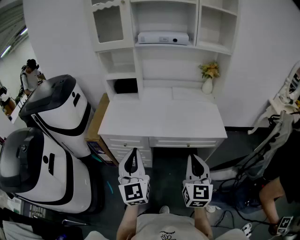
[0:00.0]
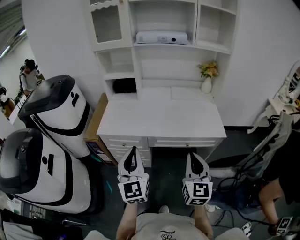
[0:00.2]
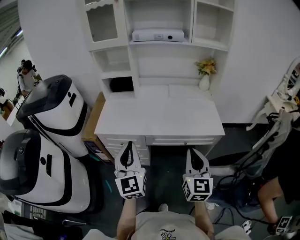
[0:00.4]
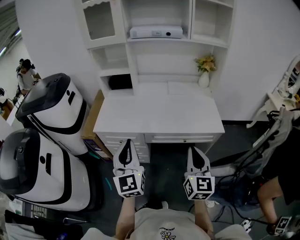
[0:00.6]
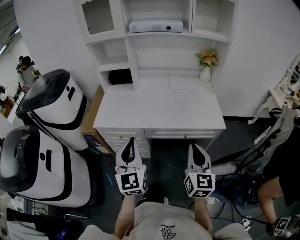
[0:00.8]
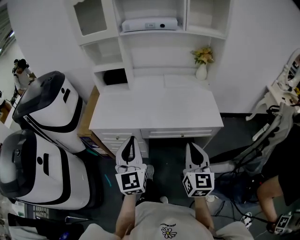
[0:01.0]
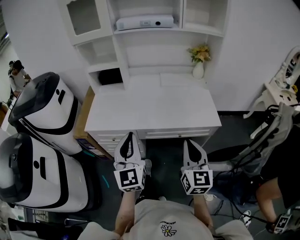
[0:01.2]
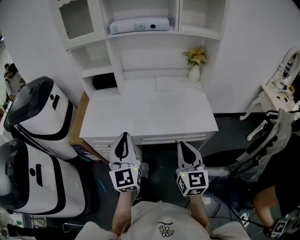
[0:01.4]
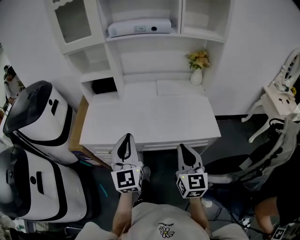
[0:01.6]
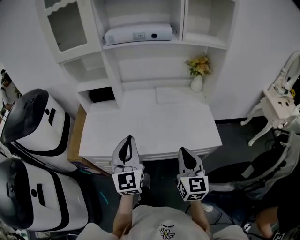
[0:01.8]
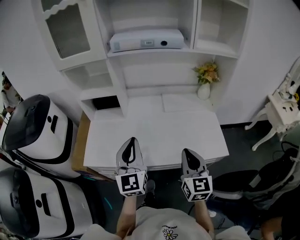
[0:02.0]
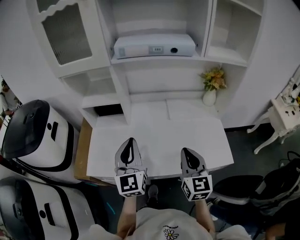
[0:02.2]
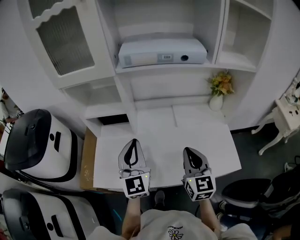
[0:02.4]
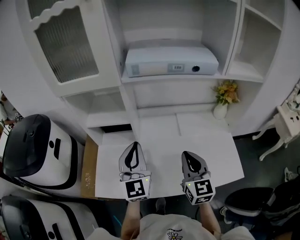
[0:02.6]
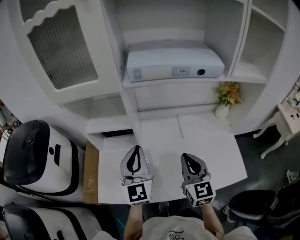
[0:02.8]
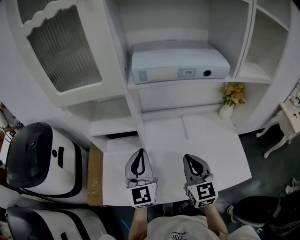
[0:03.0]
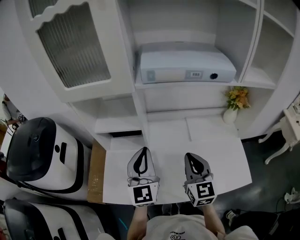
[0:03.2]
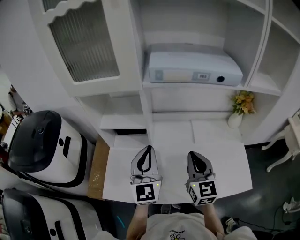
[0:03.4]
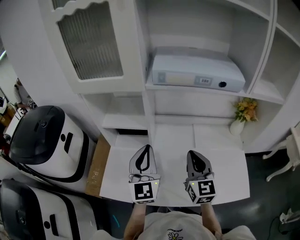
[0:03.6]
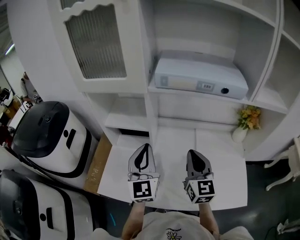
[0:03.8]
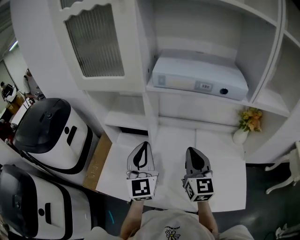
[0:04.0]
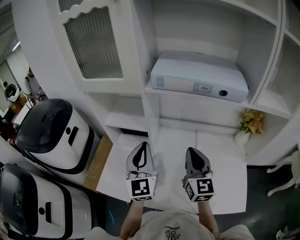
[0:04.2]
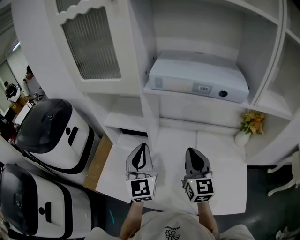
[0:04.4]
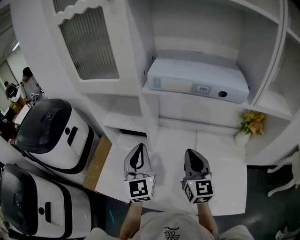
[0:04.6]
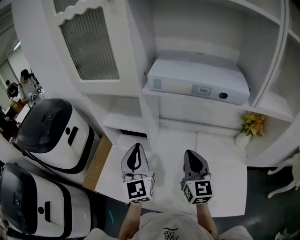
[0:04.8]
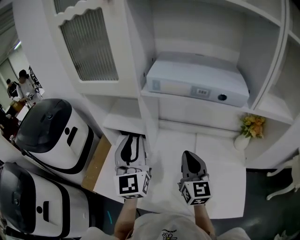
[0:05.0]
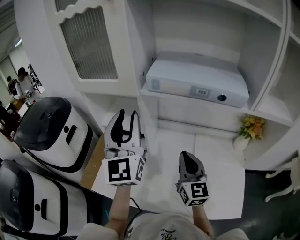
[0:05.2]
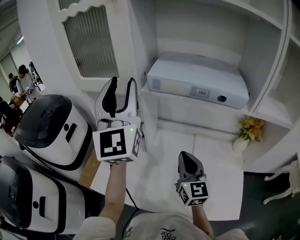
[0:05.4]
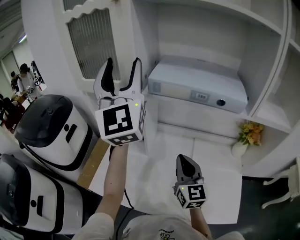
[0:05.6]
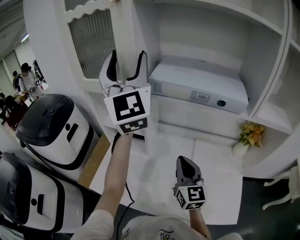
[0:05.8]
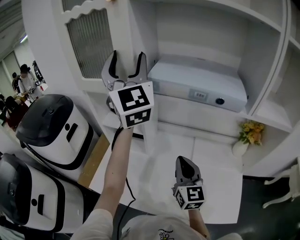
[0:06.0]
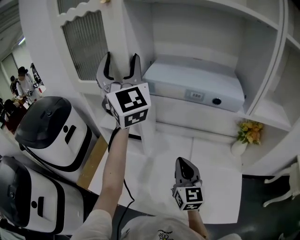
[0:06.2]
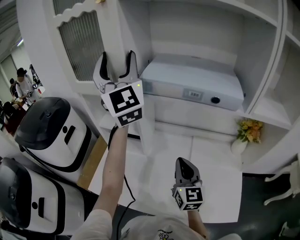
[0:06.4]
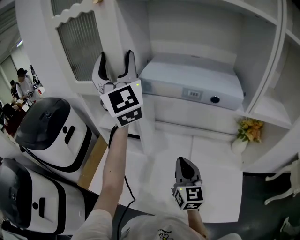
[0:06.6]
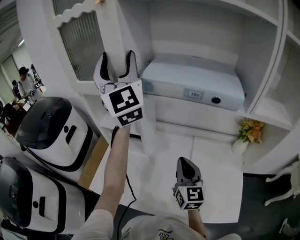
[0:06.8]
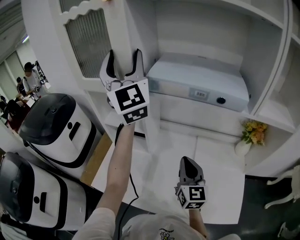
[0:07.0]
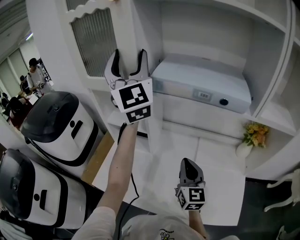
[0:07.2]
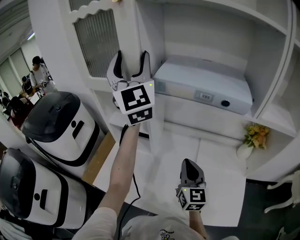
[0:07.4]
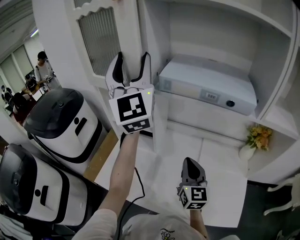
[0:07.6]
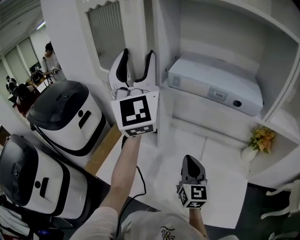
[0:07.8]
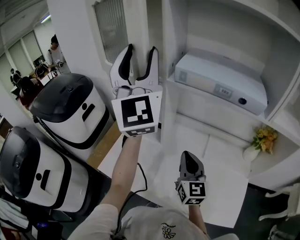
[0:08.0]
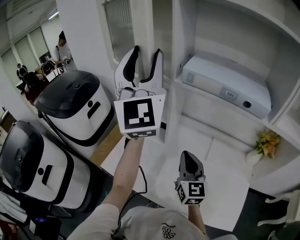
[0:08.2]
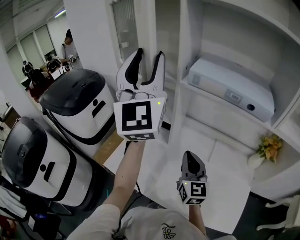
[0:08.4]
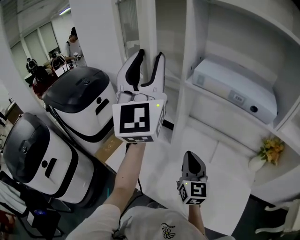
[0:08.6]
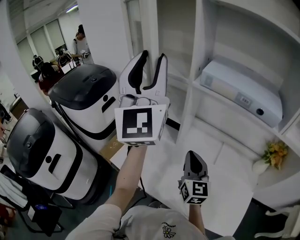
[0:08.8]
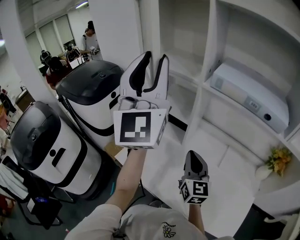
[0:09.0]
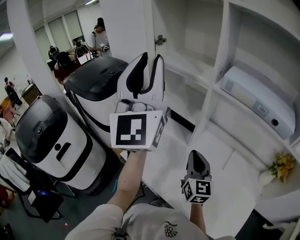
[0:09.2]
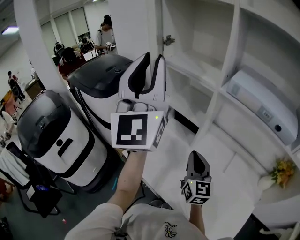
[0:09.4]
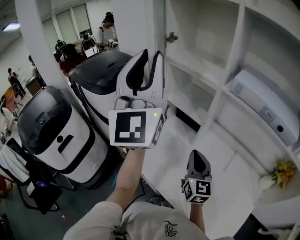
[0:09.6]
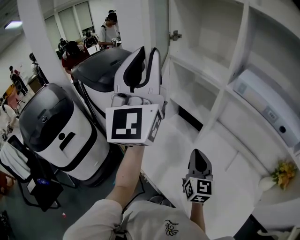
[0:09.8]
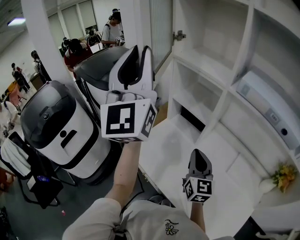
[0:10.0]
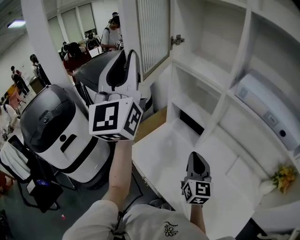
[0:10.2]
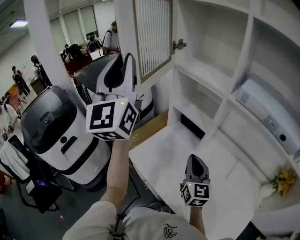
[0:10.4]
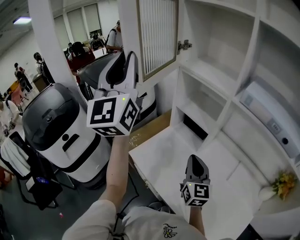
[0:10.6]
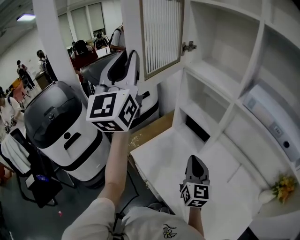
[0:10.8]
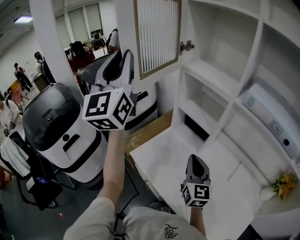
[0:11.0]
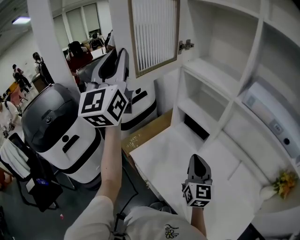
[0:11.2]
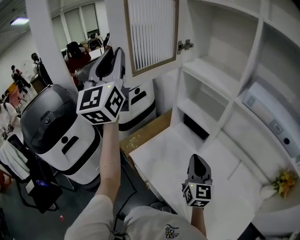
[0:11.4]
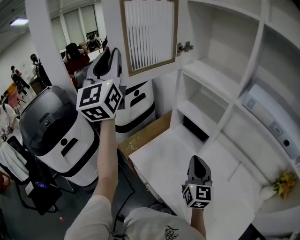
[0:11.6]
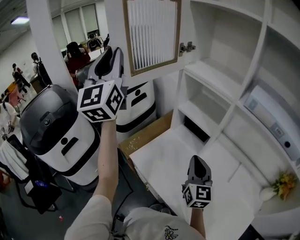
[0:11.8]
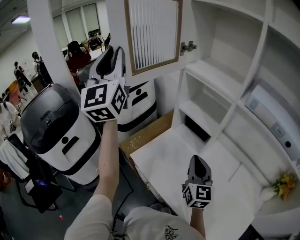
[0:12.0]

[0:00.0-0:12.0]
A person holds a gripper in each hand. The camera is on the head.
0:00.0 to 0:01.6: Both grippers move forward, approximately 15 cm.
0:01.6 to 0:03.0: The right gripper travels forward and to the left by some 35 cm; the left gripper shifts some 30 cm forward.
0:03.0 to 0:04.4: The right gripper moves forward, some 5 cm.
0:04.4 to 0:06.0: The left gripper is displaced upward and forward by about 30 cm, turns by about 30 degrees, and opens its fingers.
0:06.0 to 0:07.6: The grippers stay close to where they were, moving slightly.
0:07.6 to 0:09.0: The left gripper is displaced backward and to the left by approximately 15 cm, and closes. The right gripper goes roughly 10 cm to the left.
0:09.0 to 0:10.4: The right gripper is displaced to the left by some 5 cm, while the left gripper travels to the left by roughly 15 cm.
0:10.4 to 0:12.0: The left gripper goes approximately 10 cm to the left and forward.

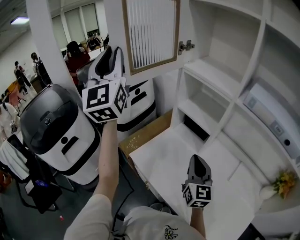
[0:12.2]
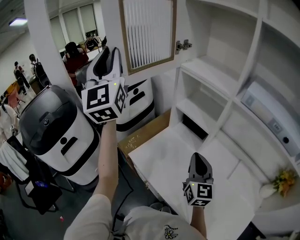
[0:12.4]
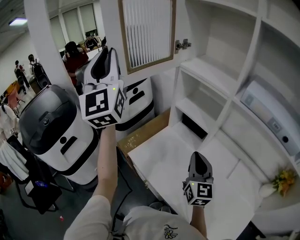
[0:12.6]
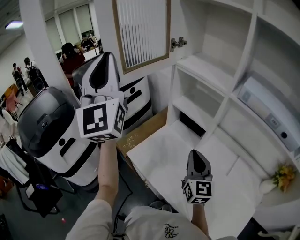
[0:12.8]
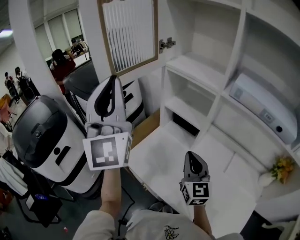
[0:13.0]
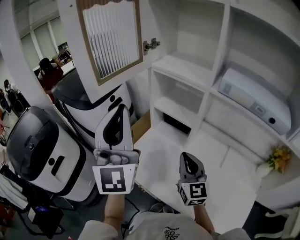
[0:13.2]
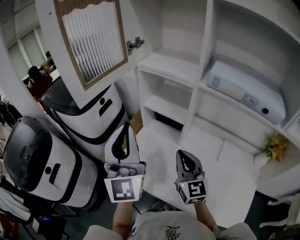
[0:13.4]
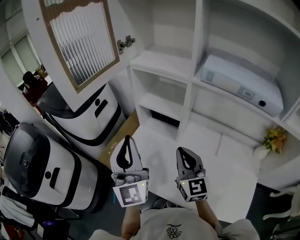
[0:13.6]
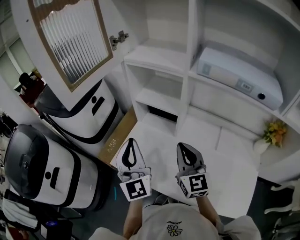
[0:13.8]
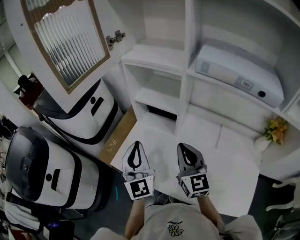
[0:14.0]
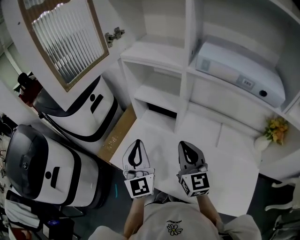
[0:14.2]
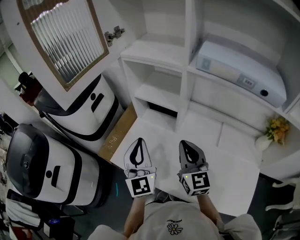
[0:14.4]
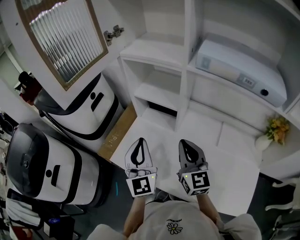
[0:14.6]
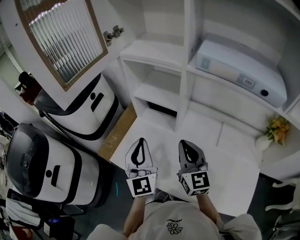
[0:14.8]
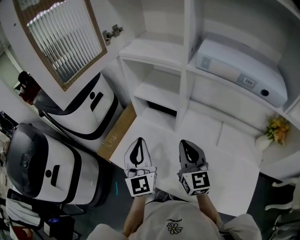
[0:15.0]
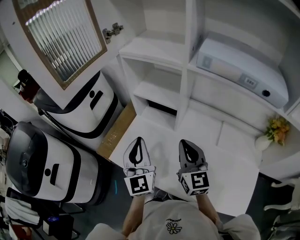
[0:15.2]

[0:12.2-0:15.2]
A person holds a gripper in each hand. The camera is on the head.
0:12.2 to 0:13.8: The left gripper is displaced downward, to the right and backward by roughly 35 cm, and rotates roughly 20 degrees.
0:13.8 to 0:15.2: The left gripper heads downward, covering about 5 cm.

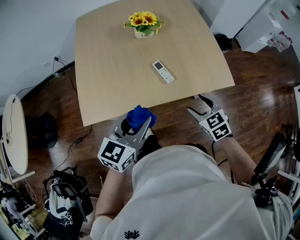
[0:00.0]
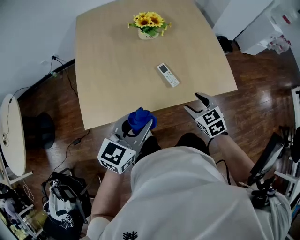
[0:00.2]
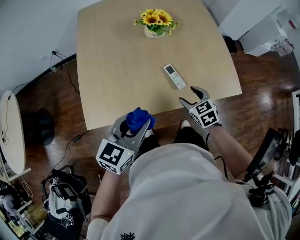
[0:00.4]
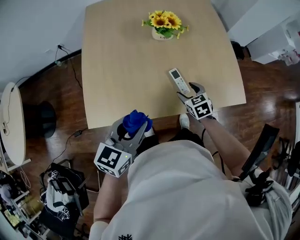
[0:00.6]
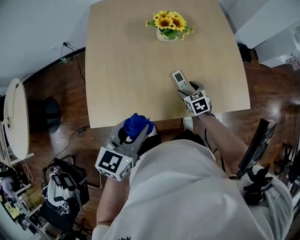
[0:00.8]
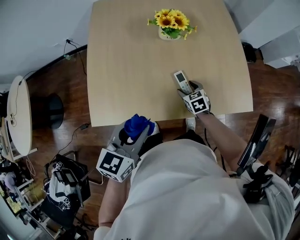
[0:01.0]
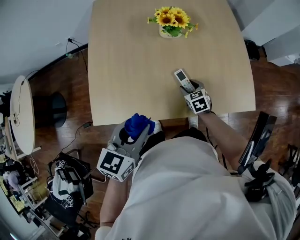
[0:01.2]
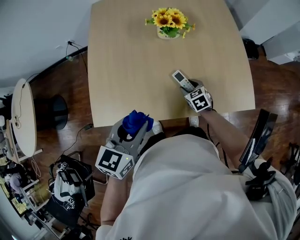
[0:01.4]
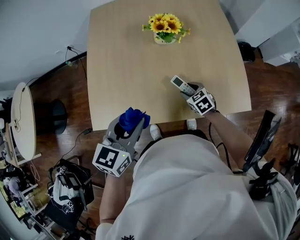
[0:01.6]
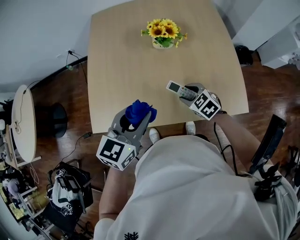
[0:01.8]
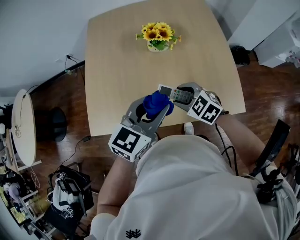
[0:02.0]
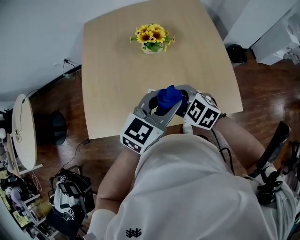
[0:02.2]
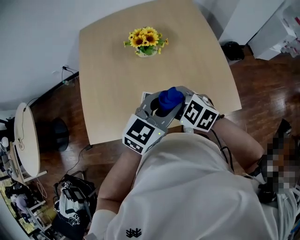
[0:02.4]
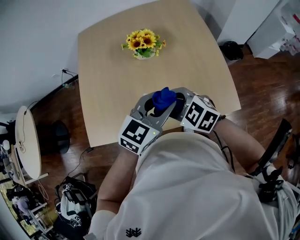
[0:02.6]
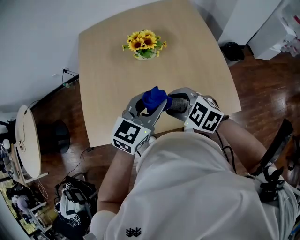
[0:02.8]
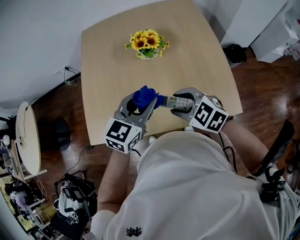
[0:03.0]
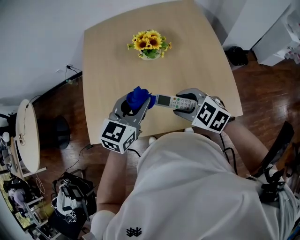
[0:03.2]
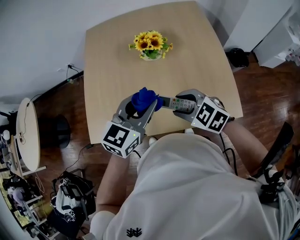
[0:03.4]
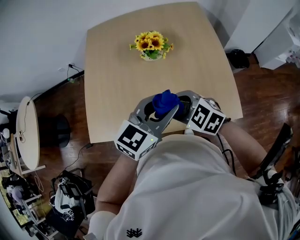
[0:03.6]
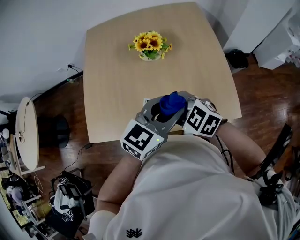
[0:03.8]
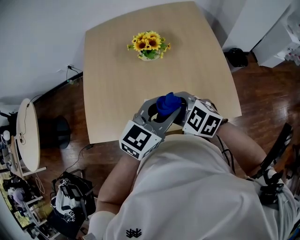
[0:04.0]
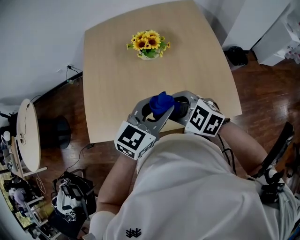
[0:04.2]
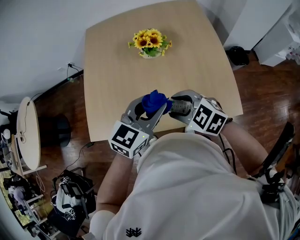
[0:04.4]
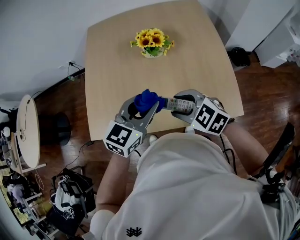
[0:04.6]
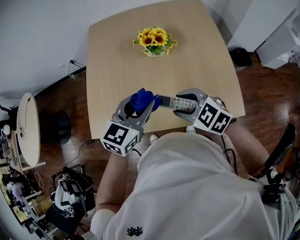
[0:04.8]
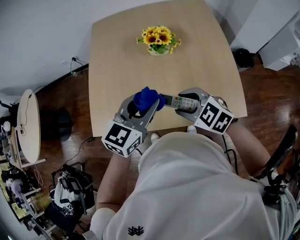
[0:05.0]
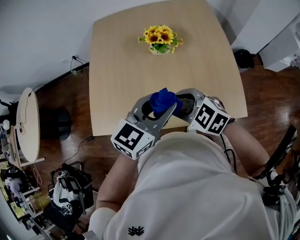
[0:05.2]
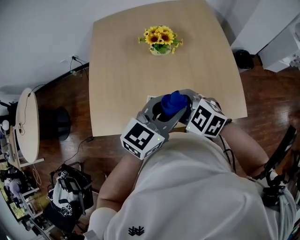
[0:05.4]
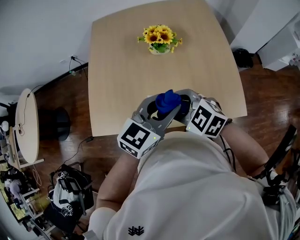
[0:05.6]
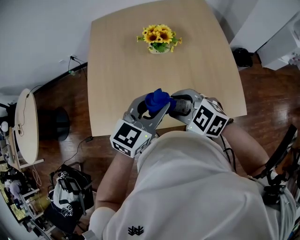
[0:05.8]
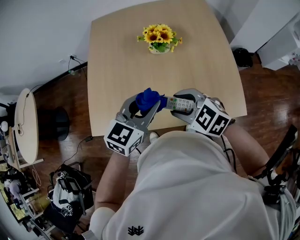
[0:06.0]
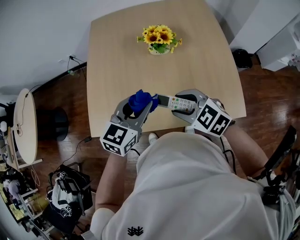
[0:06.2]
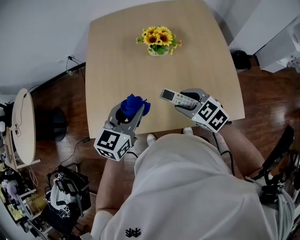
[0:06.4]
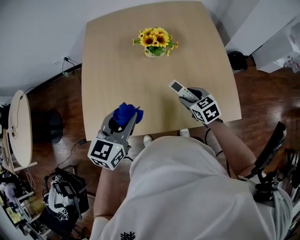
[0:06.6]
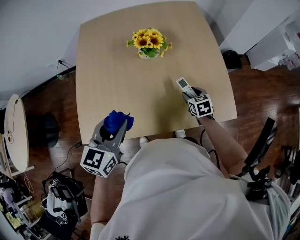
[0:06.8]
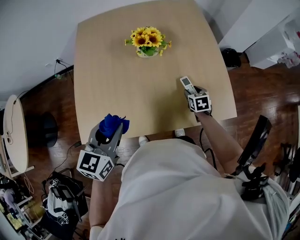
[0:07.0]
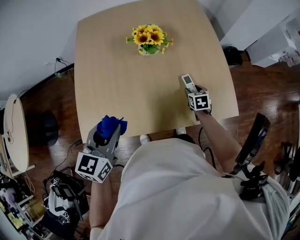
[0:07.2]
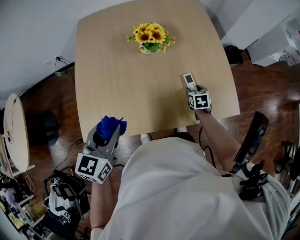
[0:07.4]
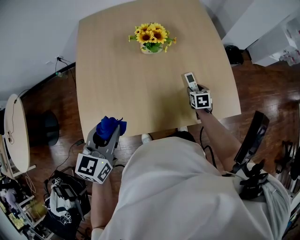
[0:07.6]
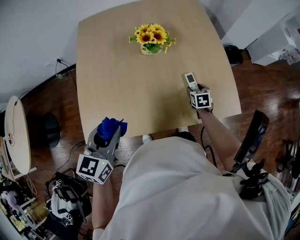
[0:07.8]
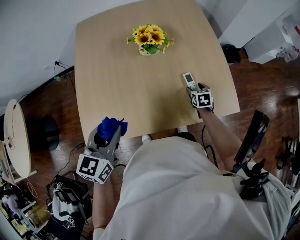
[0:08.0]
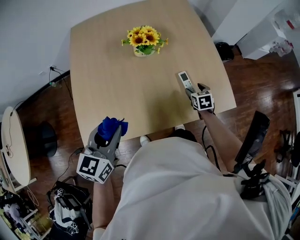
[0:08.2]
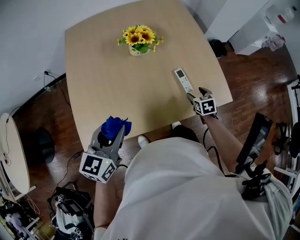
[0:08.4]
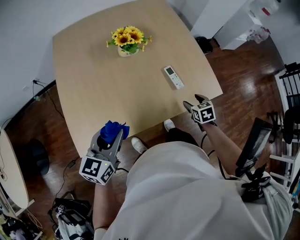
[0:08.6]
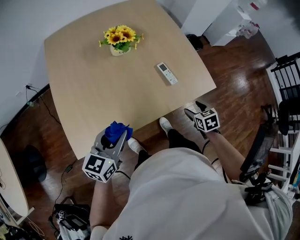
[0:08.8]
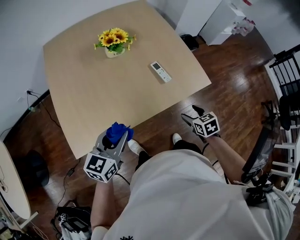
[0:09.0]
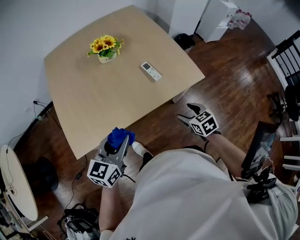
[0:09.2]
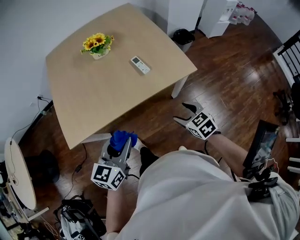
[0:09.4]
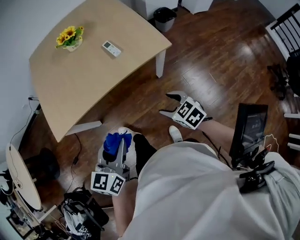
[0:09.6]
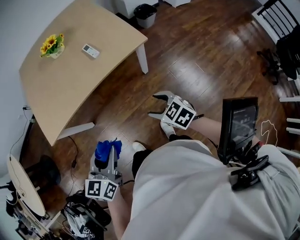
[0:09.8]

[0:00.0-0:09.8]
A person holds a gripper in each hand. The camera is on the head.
0:00.0 to 0:01.4: The left gripper heads forward and to the left, covering roughly 10 cm, while the right gripper goes some 30 cm forward, downward and to the left.
0:01.4 to 0:02.8: The left gripper is displaced to the right and forward by some 20 cm, and rotates some 20 degrees; the right gripper shifts approximately 25 cm upward, and swivels approximately 30 degrees.
0:02.8 to 0:04.2: The left gripper reaches approximately 5 cm to the left, then returns.
0:04.2 to 0:05.6: The left gripper travels to the left and back again, approximately 10 cm each way.
0:05.6 to 0:07.0: The right gripper shifts roughly 30 cm downward and to the right, and turns by roughly 60 degrees, while the left gripper shifts roughly 15 cm to the left, and turns by approximately 20 degrees.
0:07.0 to 0:08.4: The right gripper heads backward, covering some 5 cm.
0:08.4 to 0:09.8: The pair of grippers is taken backward and to the right, approximately 40 cm. The right gripper swivels about 30 degrees.
